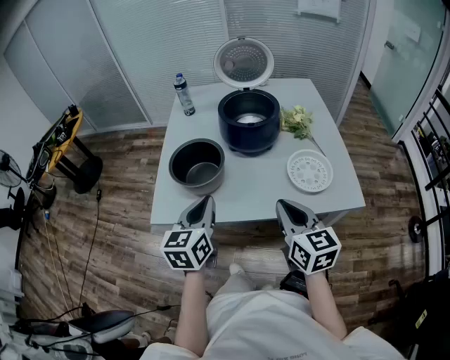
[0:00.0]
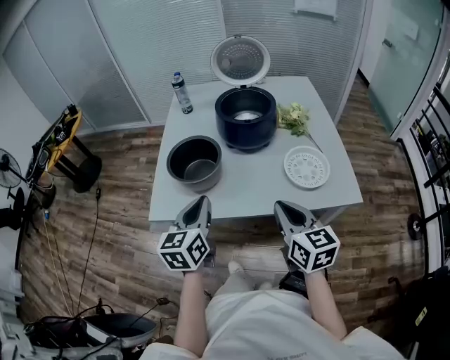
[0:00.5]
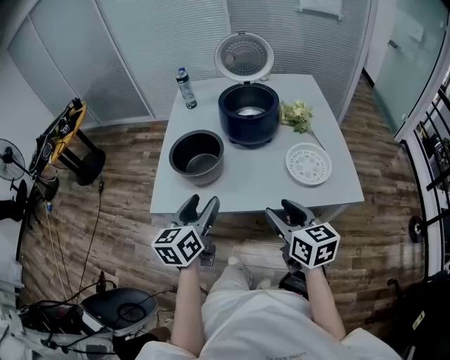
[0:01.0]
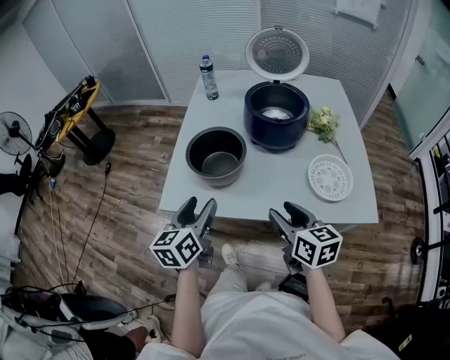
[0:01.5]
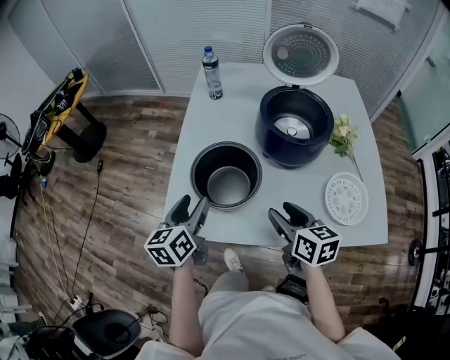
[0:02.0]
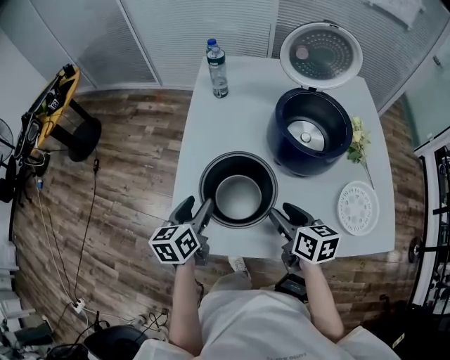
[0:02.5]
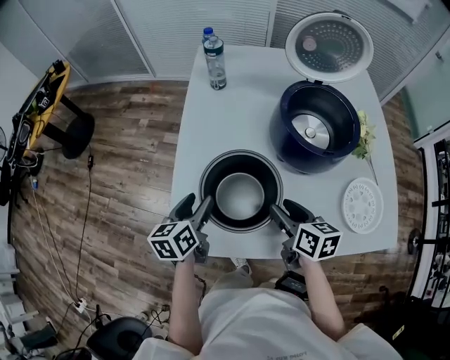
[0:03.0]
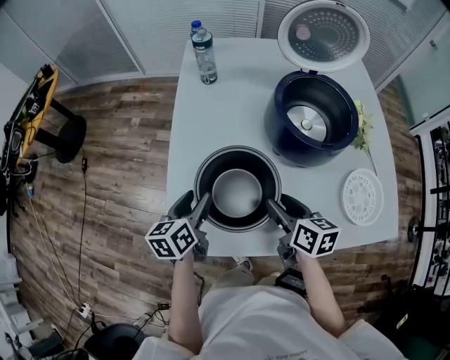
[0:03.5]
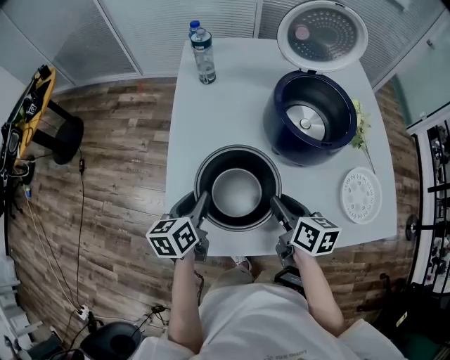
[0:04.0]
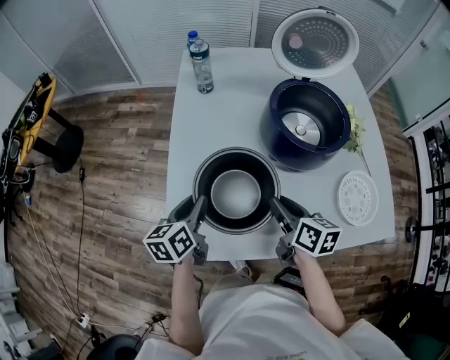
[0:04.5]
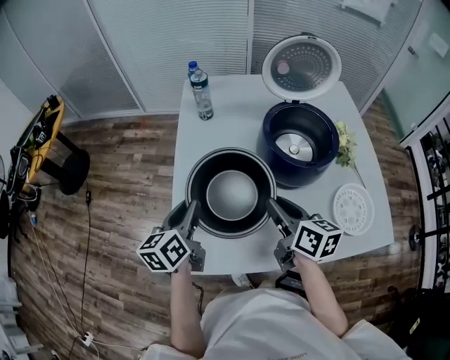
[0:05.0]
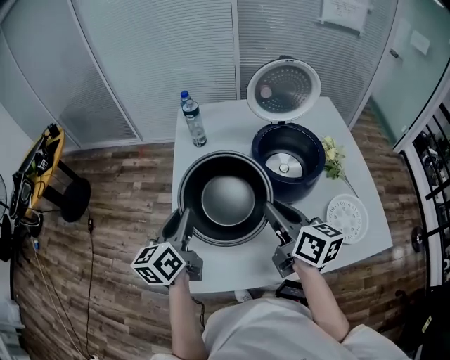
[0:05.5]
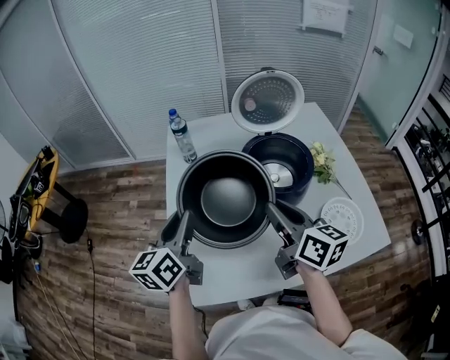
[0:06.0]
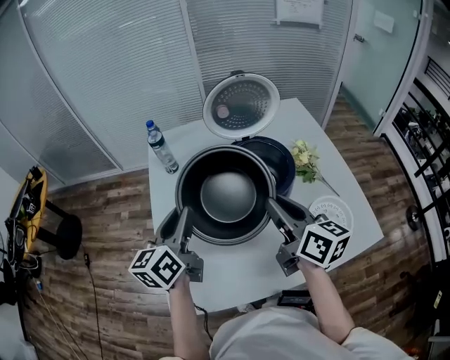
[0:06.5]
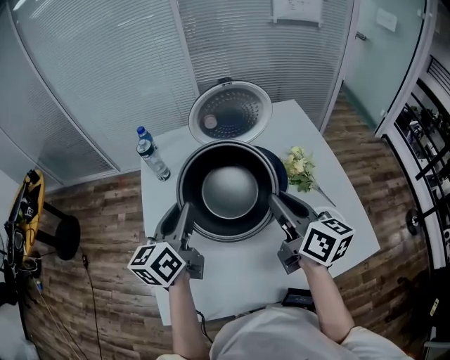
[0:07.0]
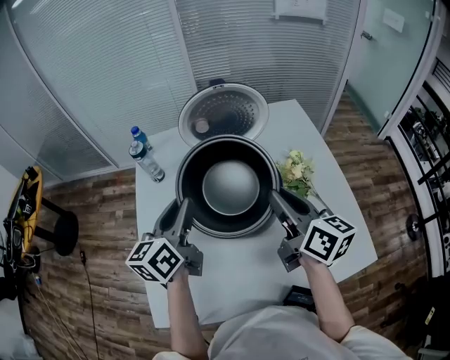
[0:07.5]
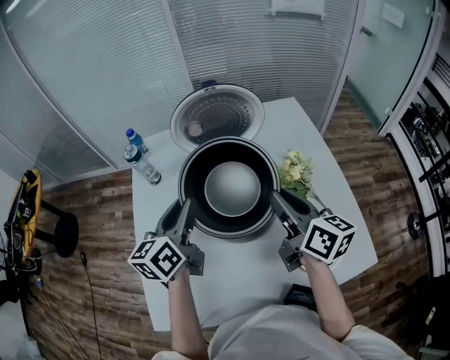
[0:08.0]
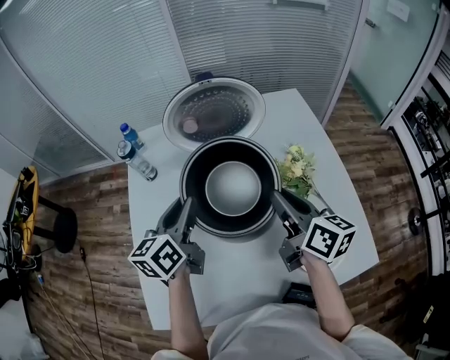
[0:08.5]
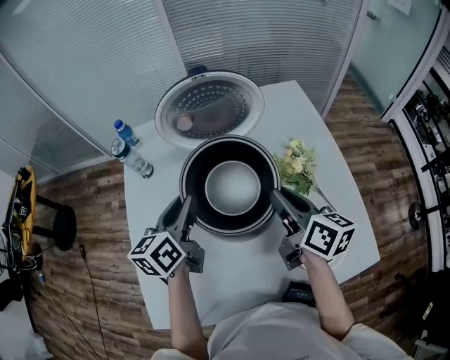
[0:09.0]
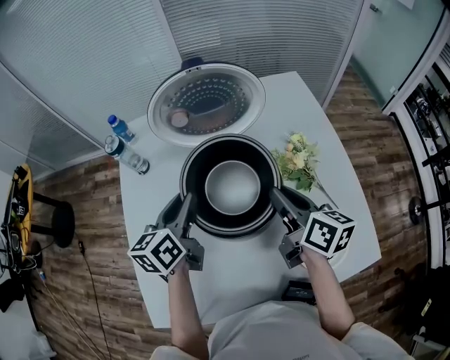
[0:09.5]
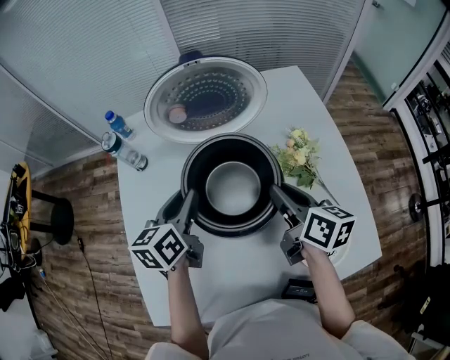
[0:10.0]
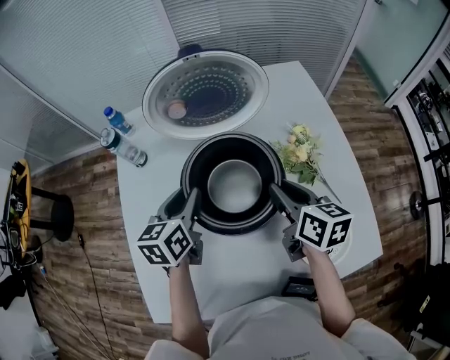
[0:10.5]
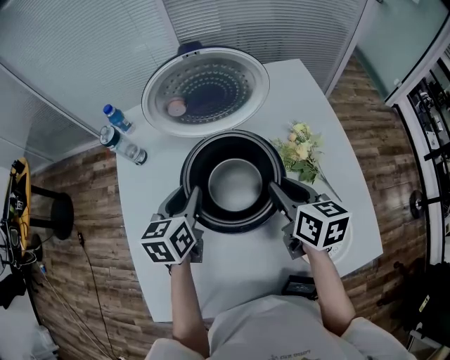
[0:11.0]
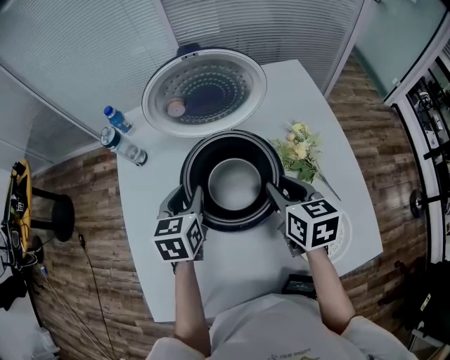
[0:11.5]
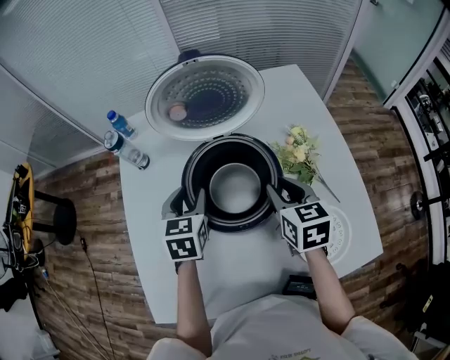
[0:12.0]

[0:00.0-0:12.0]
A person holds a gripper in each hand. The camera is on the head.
0:00.0 to 0:02.0: The two grippers go approximately 20 cm forward, to the left and downward. The right gripper changes its angle by roughly 20 degrees, and opens up, while the left gripper opens up.
0:02.0 to 0:04.0: The two grippers go roughly 15 cm forward and downward. The left gripper closes its fingers. Meanwhile the right gripper closes.
0:04.0 to 0:06.0: Both grippers move upward, approximately 20 cm. The right gripper changes its angle by approximately 30 degrees. The left gripper turns by about 20 degrees.
0:06.0 to 0:08.0: Both grippers travel together to the right and forward, approximately 25 cm.
0:08.0 to 0:10.0: Both grippers travel together downward and forward, roughly 10 cm.
0:10.0 to 0:12.0: The right gripper rotates about 30 degrees. The left gripper swivels roughly 30 degrees.

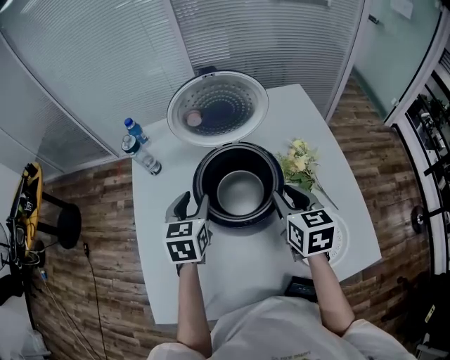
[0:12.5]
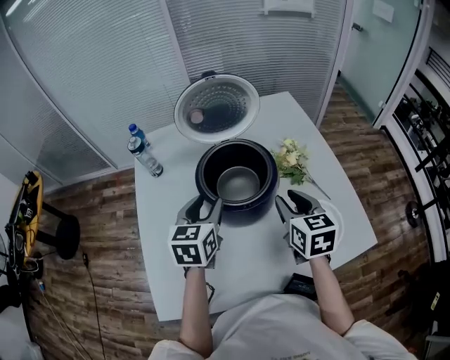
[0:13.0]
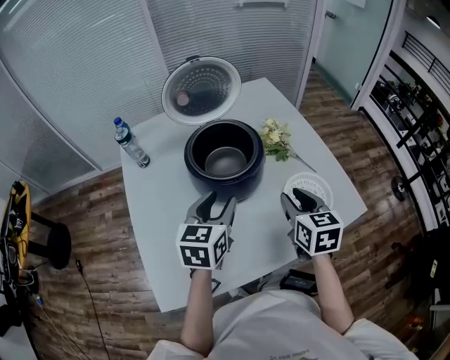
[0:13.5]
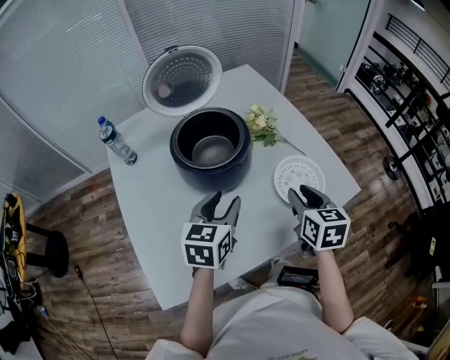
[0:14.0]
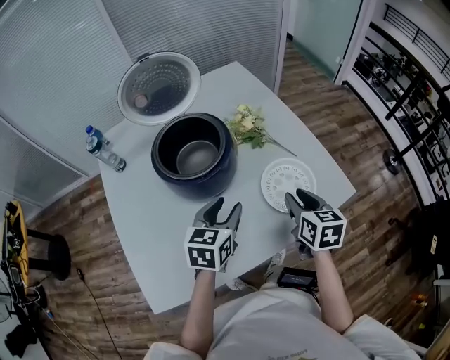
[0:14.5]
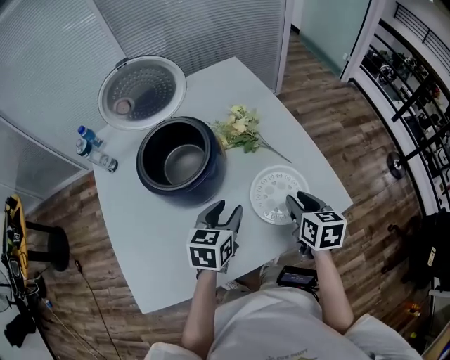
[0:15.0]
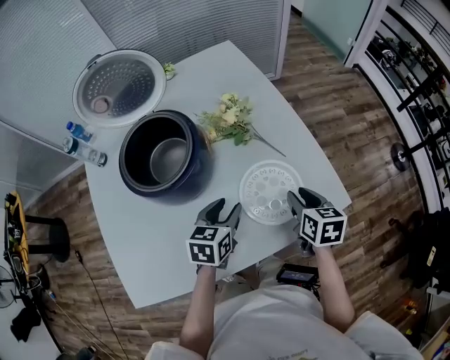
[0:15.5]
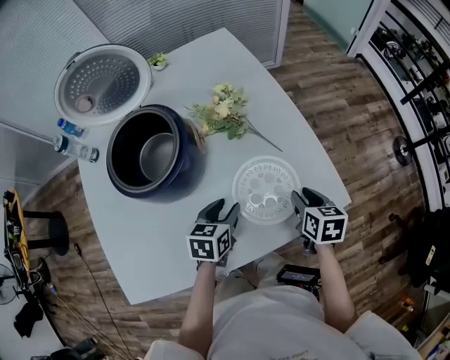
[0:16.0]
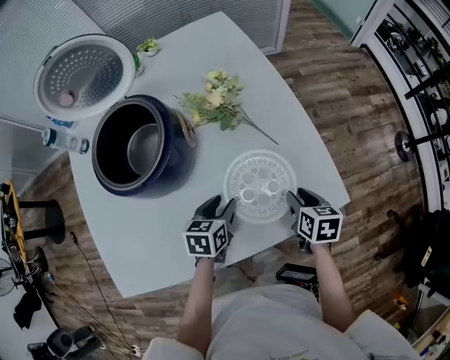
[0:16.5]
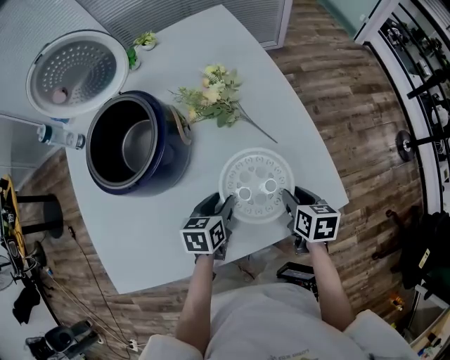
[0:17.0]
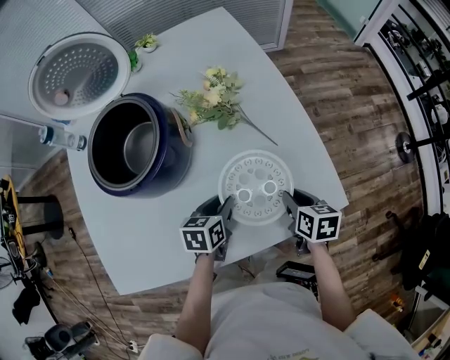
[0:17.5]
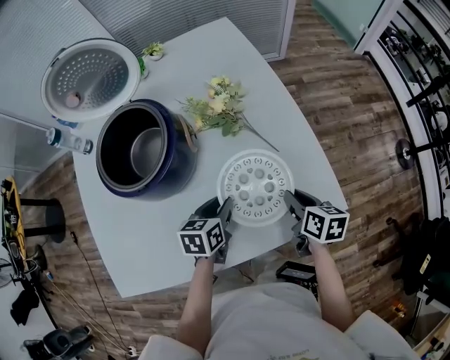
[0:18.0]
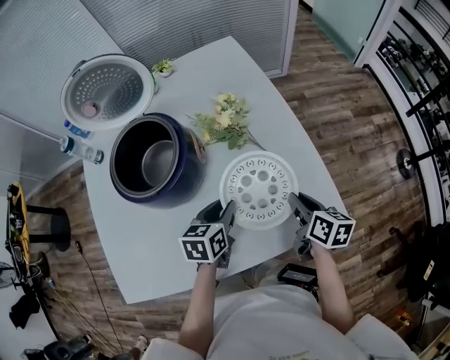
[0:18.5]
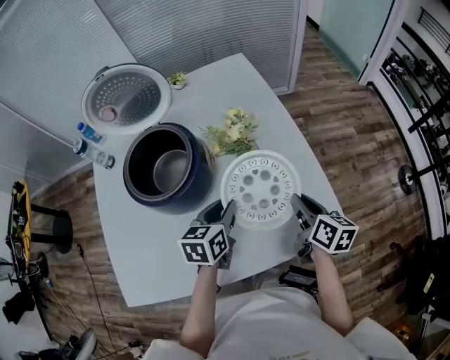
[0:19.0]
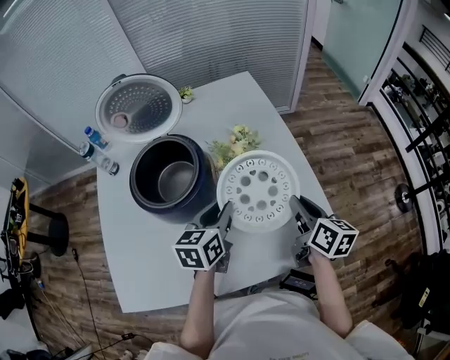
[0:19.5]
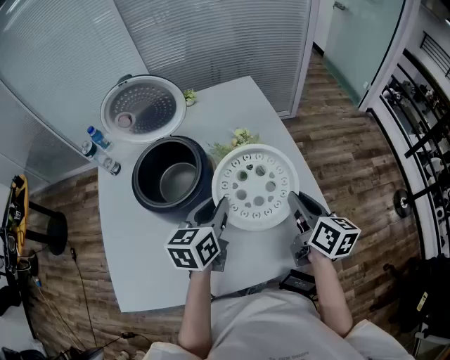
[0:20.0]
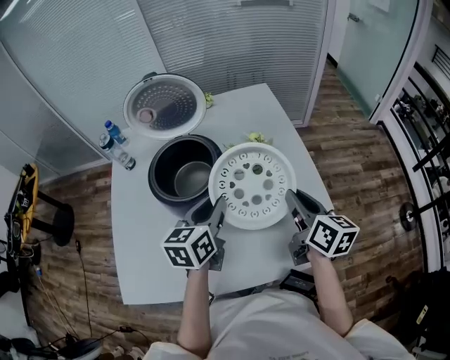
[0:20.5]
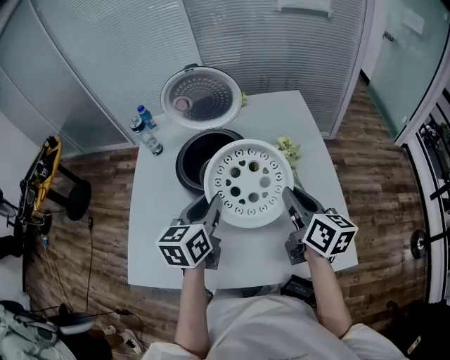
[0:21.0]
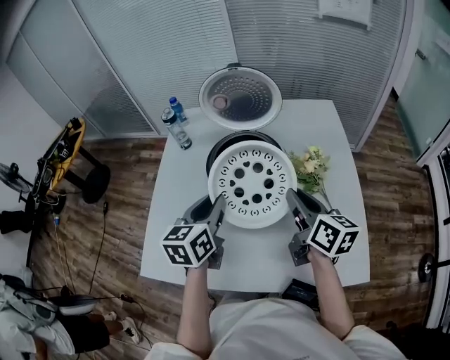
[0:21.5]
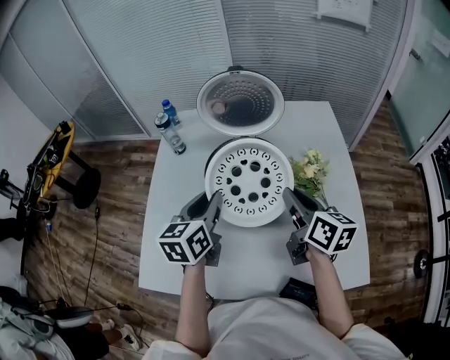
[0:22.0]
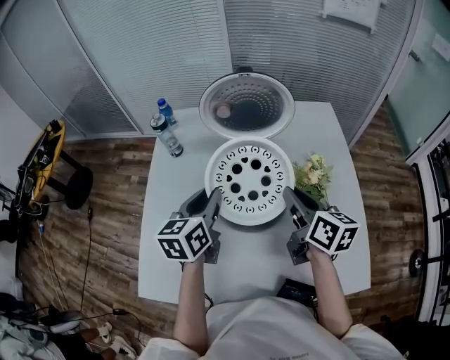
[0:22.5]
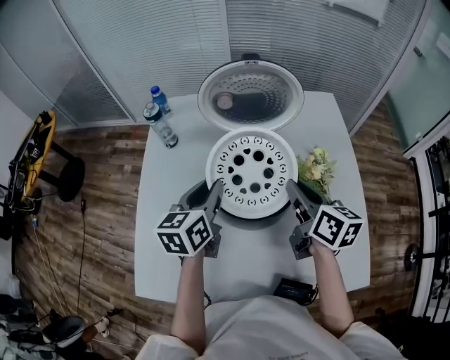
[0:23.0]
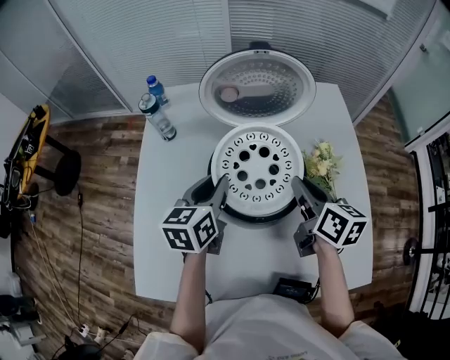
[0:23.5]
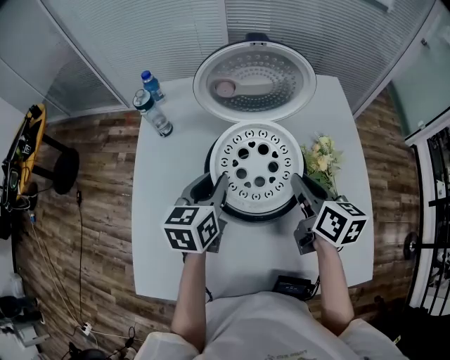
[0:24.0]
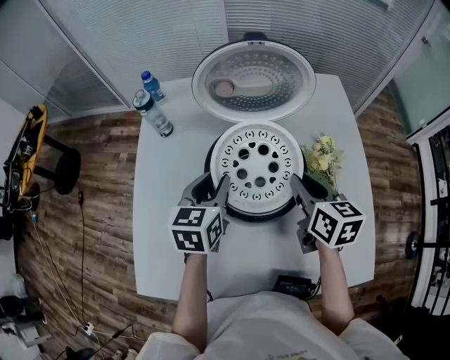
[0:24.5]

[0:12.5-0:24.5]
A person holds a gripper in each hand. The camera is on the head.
0:12.5 to 0:14.5: The right gripper ends up some 25 cm from where it was, and changes its angle by some 20 degrees; the left gripper moves approximately 25 cm, and turns by roughly 30 degrees.
0:14.5 to 0:16.5: The left gripper goes roughly 20 cm downward and to the right, and changes its angle by roughly 20 degrees. Meanwhile the right gripper heads downward, to the right and forward, covering approximately 25 cm.
0:16.5 to 0:18.5: Both grippers travel together upward, some 5 cm. The right gripper swivels roughly 20 degrees.
0:18.5 to 0:20.5: The grippers both shift upward and to the left by approximately 15 cm. The right gripper swivels some 20 degrees, while the left gripper changes its angle by roughly 20 degrees.
0:20.5 to 0:22.5: Both grippers travel together to the left and forward, about 25 cm.
0:22.5 to 0:24.5: The two grippers go some 5 cm downward.

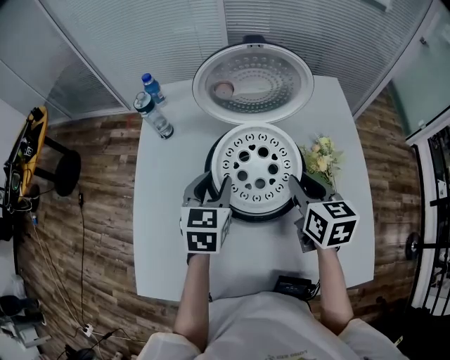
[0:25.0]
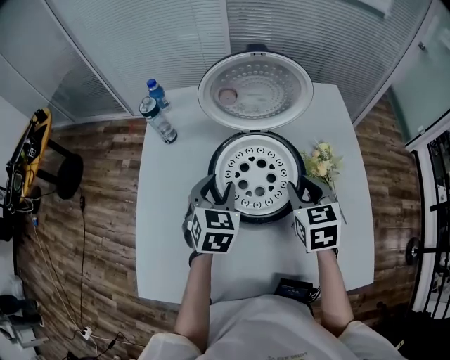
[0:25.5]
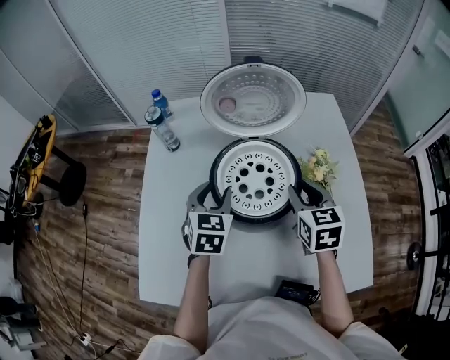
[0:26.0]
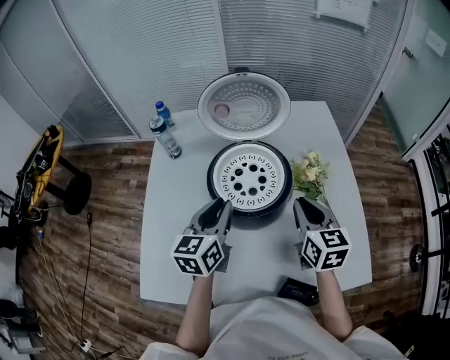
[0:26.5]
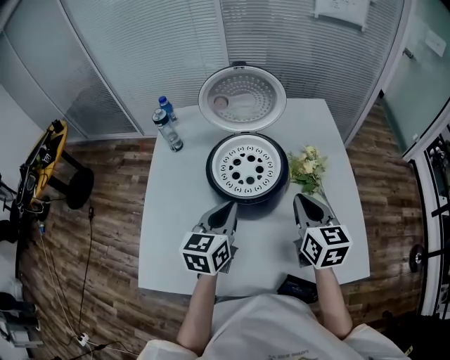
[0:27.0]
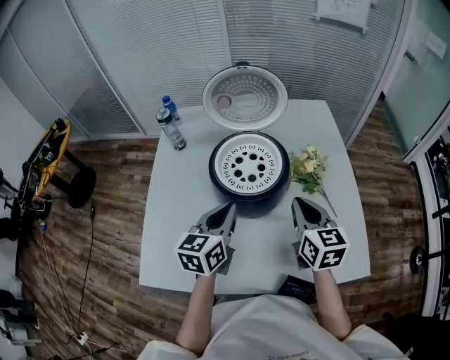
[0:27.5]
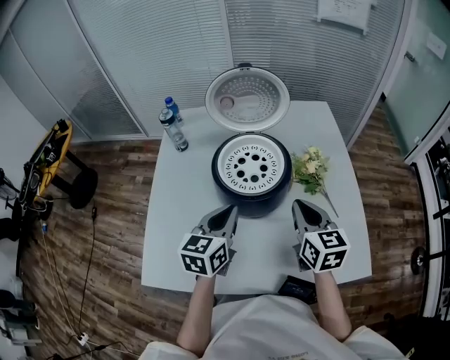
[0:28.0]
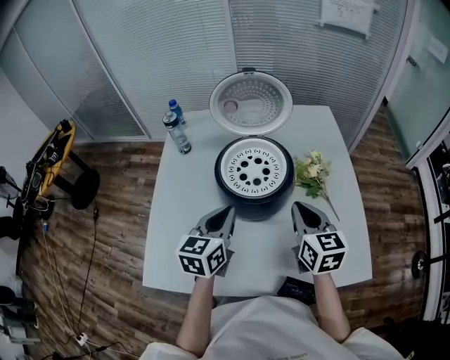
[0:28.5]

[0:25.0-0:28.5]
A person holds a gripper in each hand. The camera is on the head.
0:25.0 to 0:27.0: The left gripper goes about 15 cm backward and to the right, and closes up, while the right gripper moves backward, roughly 10 cm.
0:27.0 to 0:28.5: The grippers stay close to where they were, moving slightly.
